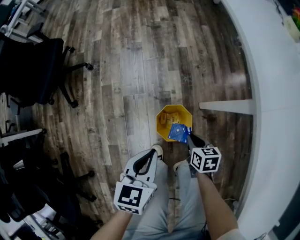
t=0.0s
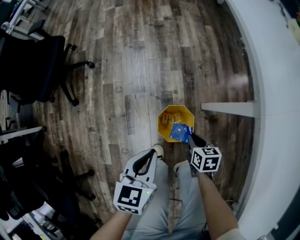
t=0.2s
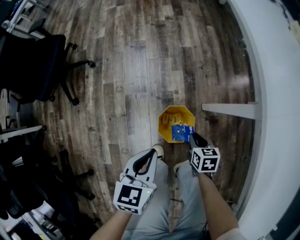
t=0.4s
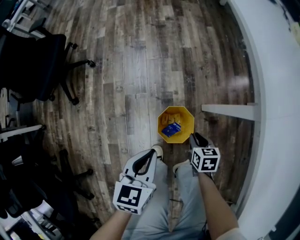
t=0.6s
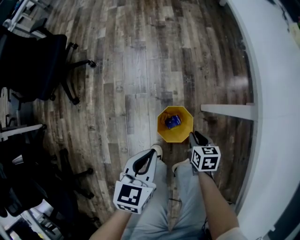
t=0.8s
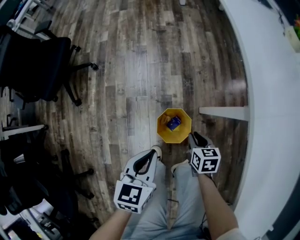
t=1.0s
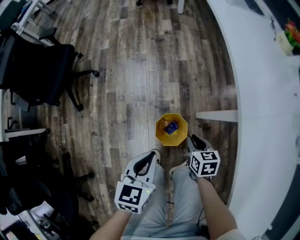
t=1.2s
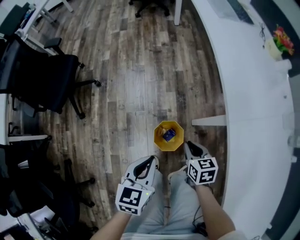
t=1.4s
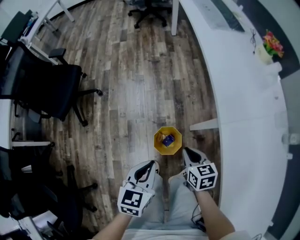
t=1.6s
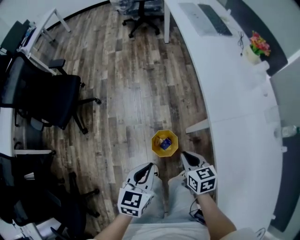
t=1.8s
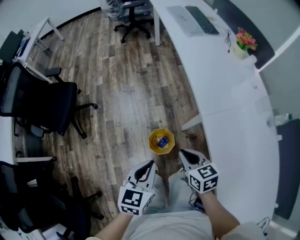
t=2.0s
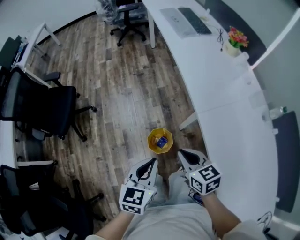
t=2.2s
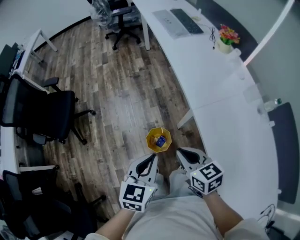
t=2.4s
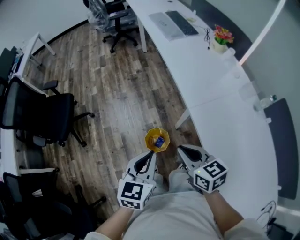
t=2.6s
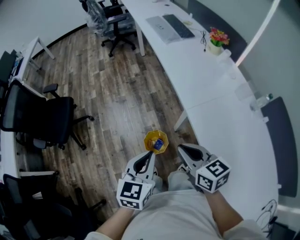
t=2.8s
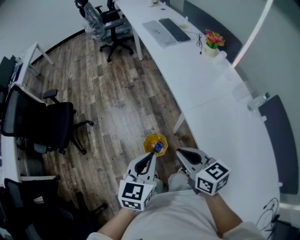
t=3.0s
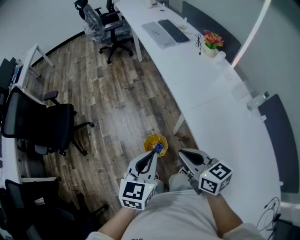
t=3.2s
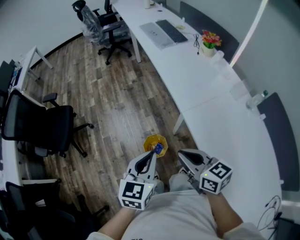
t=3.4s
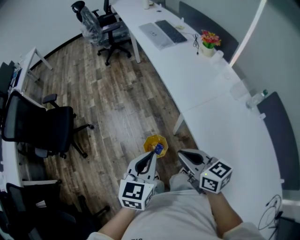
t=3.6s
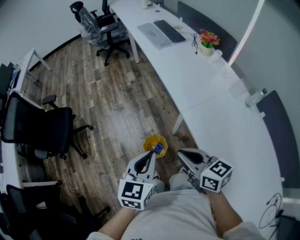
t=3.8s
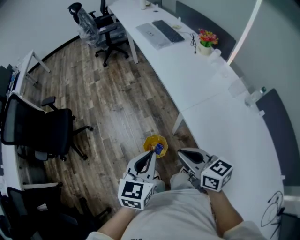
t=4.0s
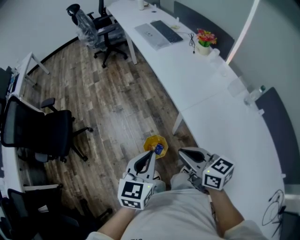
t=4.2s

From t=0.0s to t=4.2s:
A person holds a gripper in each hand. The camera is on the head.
From t=0.0s to t=1.4s: Both grippers move upward, roughly 15 cm.
From t=1.4s to t=2.8s: The right gripper moves upward, approximately 35 cm, and turns by some 20 degrees. Meanwhile the left gripper goes approximately 20 cm upward.
From t=2.8s to t=4.2s: There are only small adjustments of the grippers.

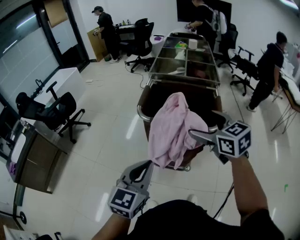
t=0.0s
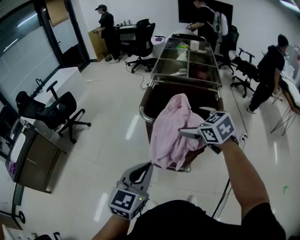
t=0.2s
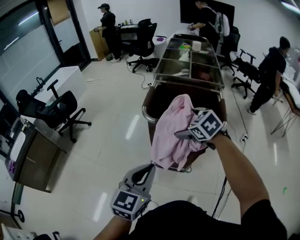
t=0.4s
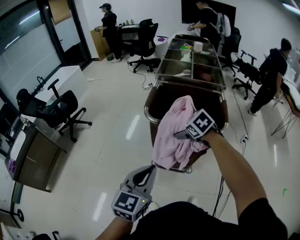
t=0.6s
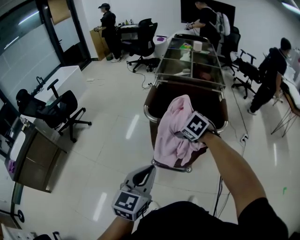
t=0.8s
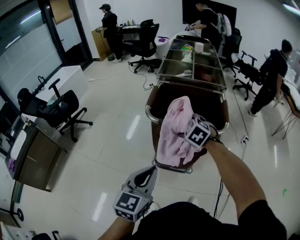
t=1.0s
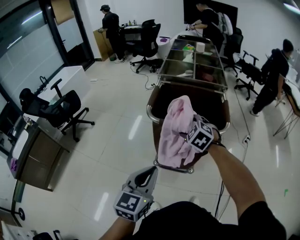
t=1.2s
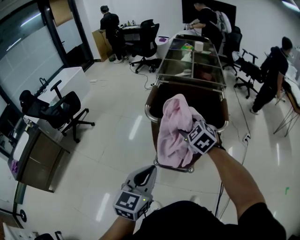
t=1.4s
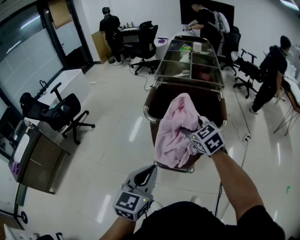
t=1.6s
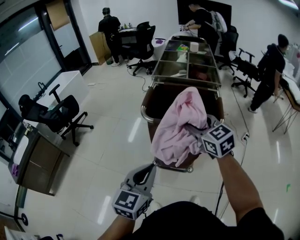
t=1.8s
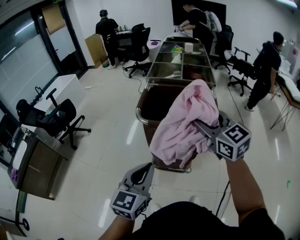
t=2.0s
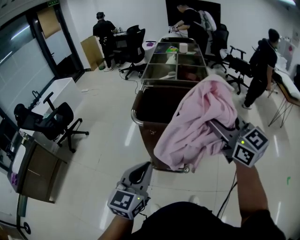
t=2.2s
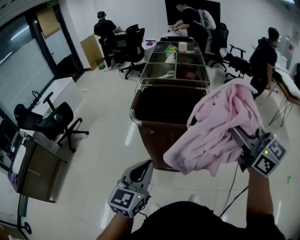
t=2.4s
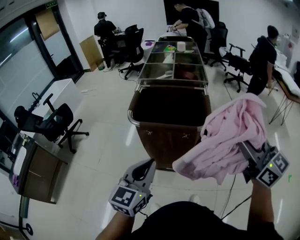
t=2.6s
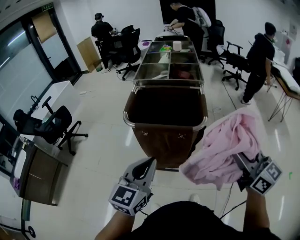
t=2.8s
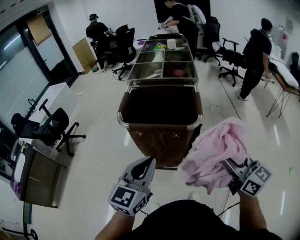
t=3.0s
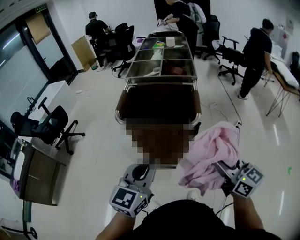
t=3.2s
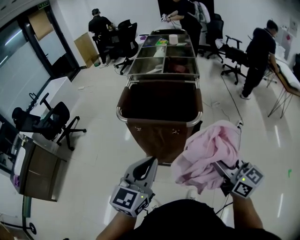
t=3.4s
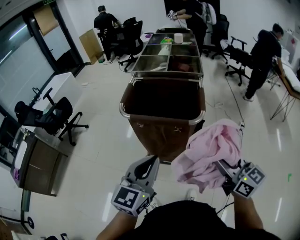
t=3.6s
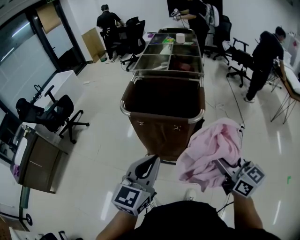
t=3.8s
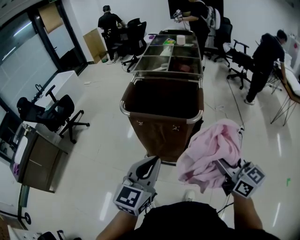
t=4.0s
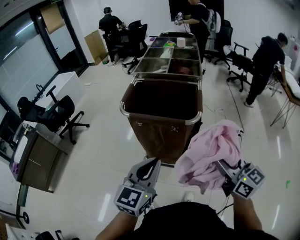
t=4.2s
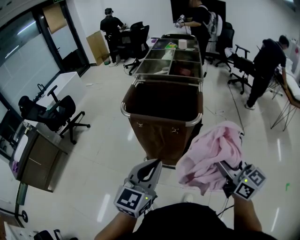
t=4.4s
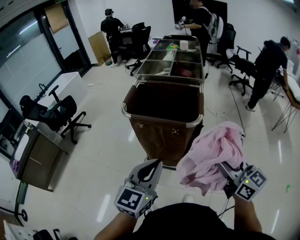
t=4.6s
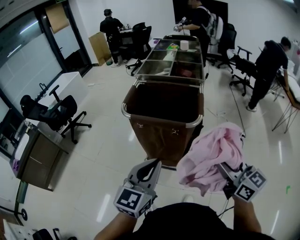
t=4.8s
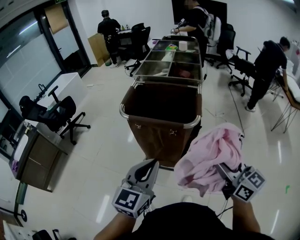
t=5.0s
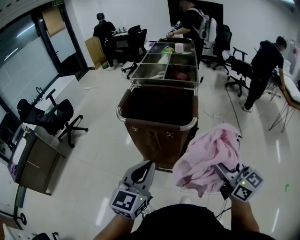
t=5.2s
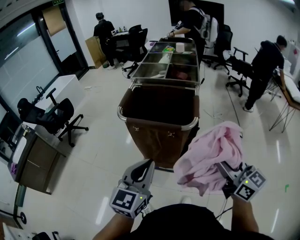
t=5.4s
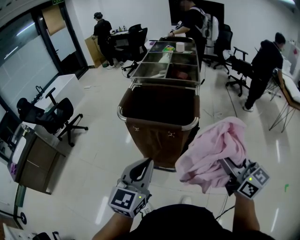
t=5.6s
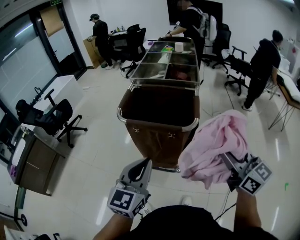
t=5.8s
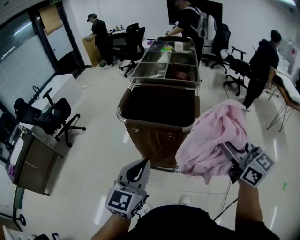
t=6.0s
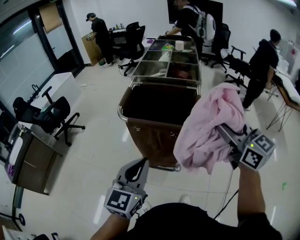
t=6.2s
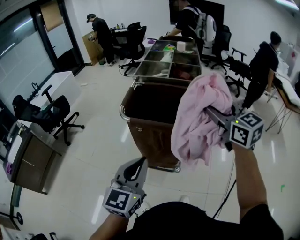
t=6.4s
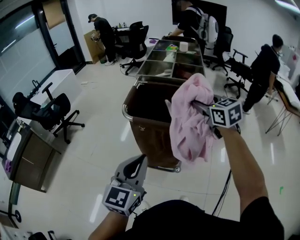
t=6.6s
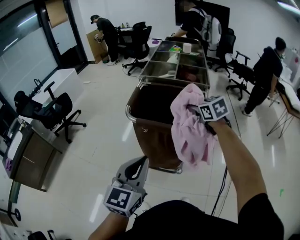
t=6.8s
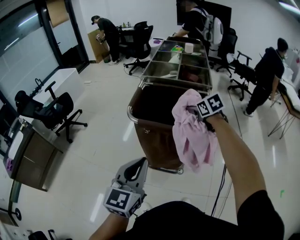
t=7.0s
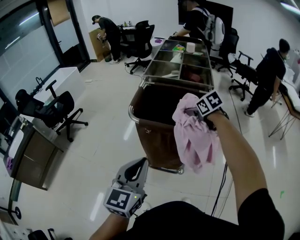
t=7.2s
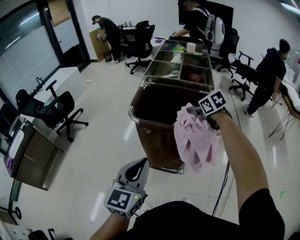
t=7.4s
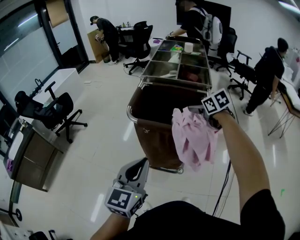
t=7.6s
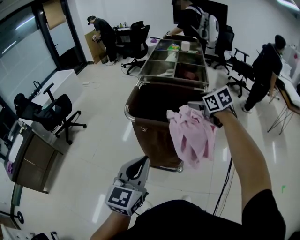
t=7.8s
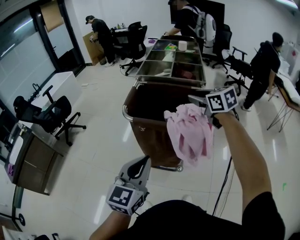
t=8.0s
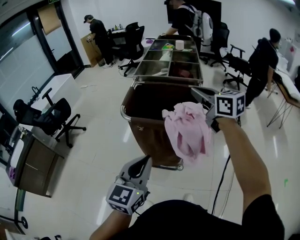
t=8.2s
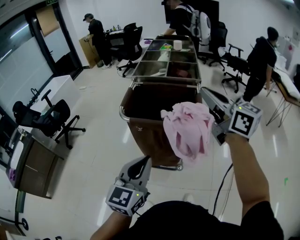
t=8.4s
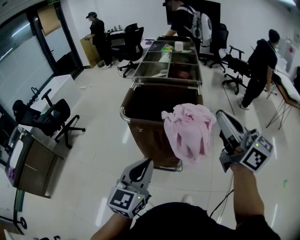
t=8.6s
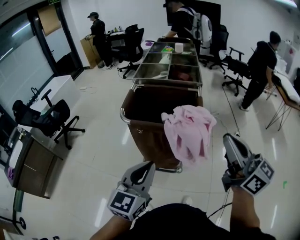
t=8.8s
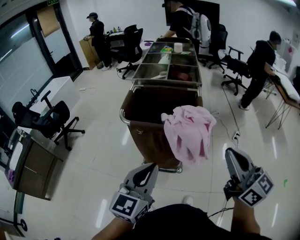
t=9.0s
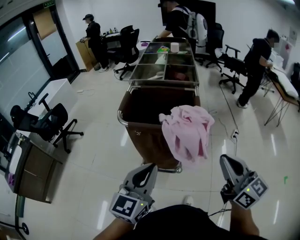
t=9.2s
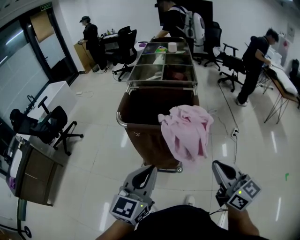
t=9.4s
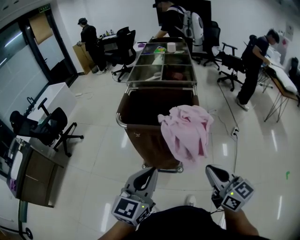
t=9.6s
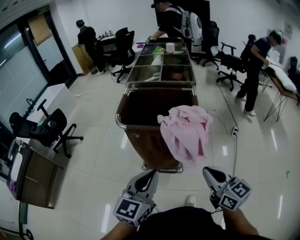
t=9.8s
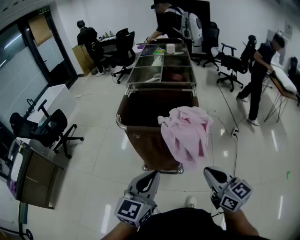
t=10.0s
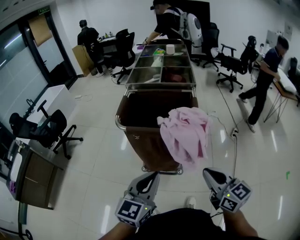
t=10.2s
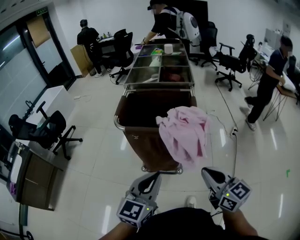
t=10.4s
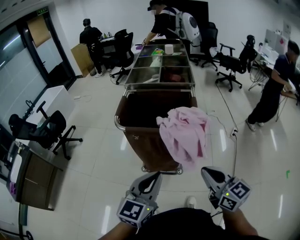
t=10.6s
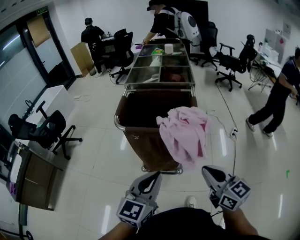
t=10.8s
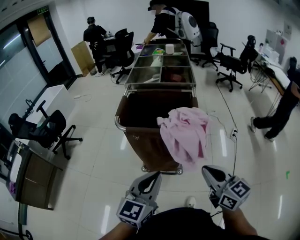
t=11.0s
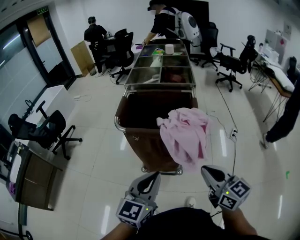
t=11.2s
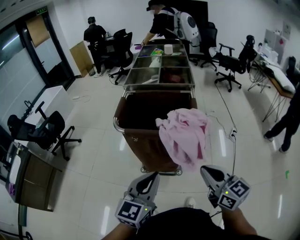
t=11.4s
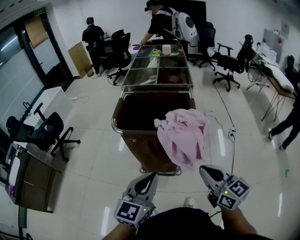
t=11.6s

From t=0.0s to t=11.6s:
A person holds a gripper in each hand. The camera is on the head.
From t=0.0s to t=1.4s: The right gripper is displaced downward, to the left and forward by some 15 cm, swivels some 30 degrees, and closes.
From t=1.4s to t=2.8s: The right gripper goes about 35 cm to the right, backward and upward, and tips its fingers upward by some 40 degrees. The left gripper travels to the right by roughly 10 cm.
From t=2.8s to t=4.4s: The left gripper heads to the right, covering some 5 cm; the right gripper is displaced downward by roughly 5 cm.
From t=4.4s to t=5.8s: The right gripper is displaced upward by some 5 cm.
From t=5.8s to t=7.2s: The right gripper is displaced forward and downward by approximately 35 cm, and tilts its fingers approximately 50 degrees downward, while the left gripper shifts roughly 10 cm to the left.
From t=7.2s to t=8.8s: The right gripper is displaced backward and upward by roughly 35 cm, points its fingers some 60 degrees further upward, and closes its fingers. The left gripper heads to the right, covering approximately 5 cm.
From t=8.8s to t=10.2s: The right gripper goes approximately 15 cm downward, and swivels approximately 20 degrees.
From t=10.2s to t=11.6s: There are only small adjustments of the grippers.

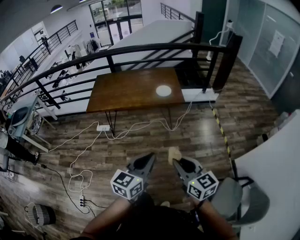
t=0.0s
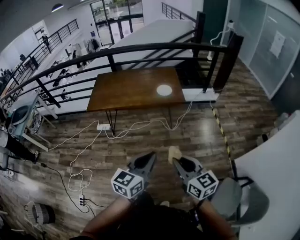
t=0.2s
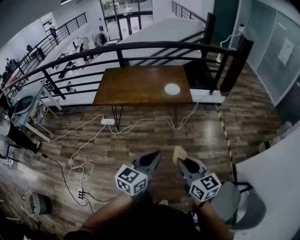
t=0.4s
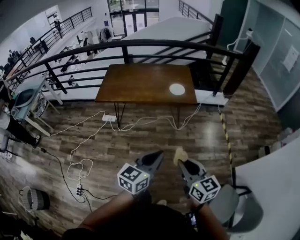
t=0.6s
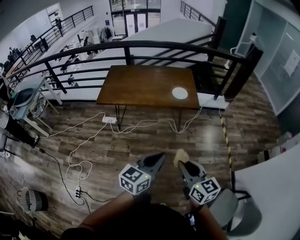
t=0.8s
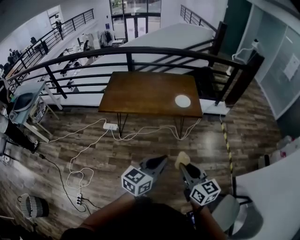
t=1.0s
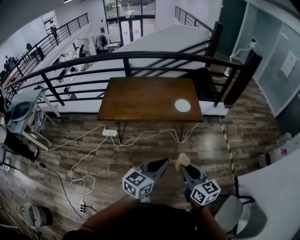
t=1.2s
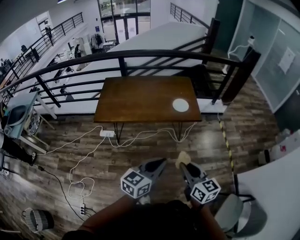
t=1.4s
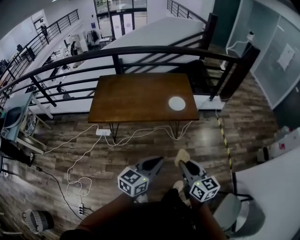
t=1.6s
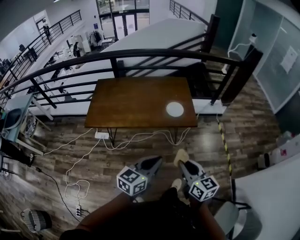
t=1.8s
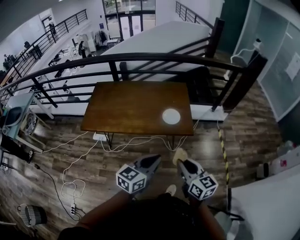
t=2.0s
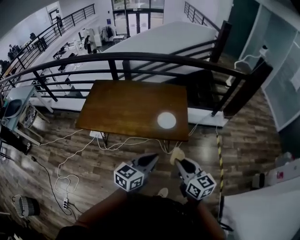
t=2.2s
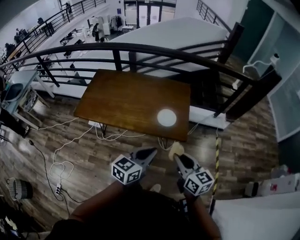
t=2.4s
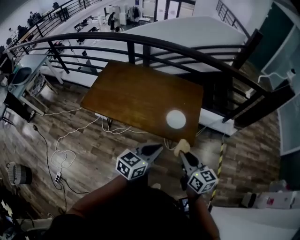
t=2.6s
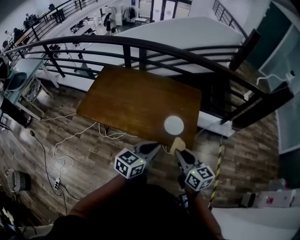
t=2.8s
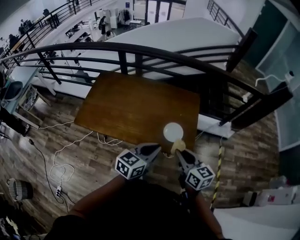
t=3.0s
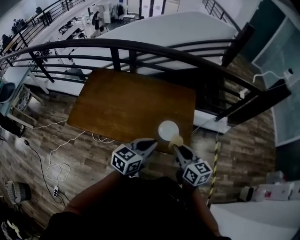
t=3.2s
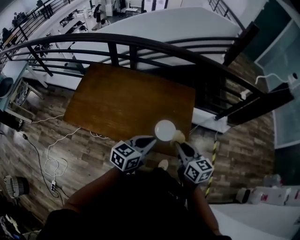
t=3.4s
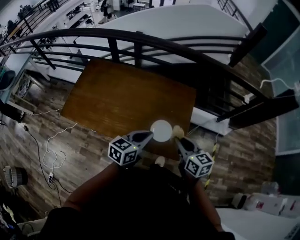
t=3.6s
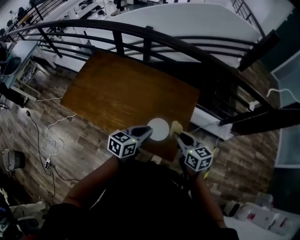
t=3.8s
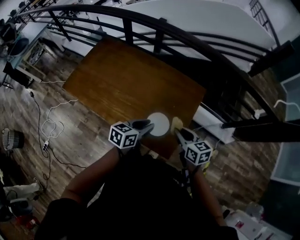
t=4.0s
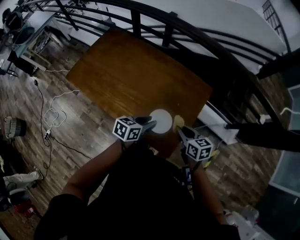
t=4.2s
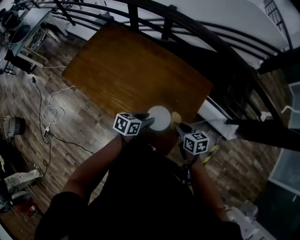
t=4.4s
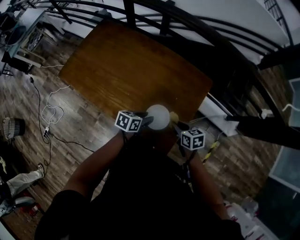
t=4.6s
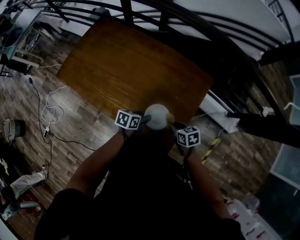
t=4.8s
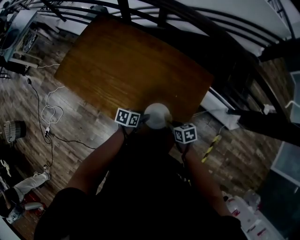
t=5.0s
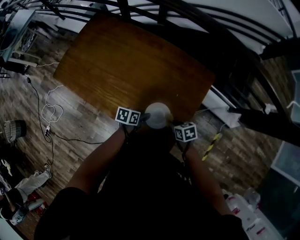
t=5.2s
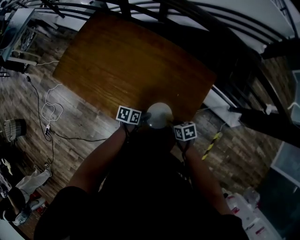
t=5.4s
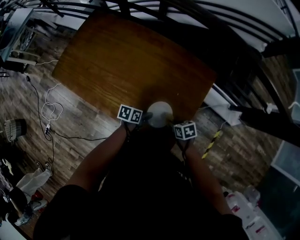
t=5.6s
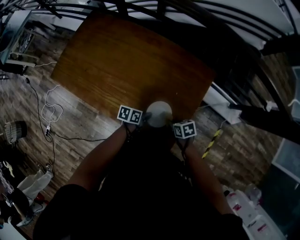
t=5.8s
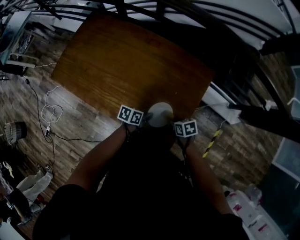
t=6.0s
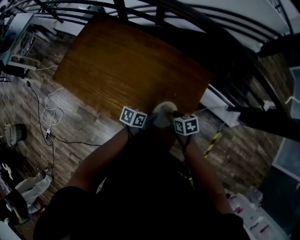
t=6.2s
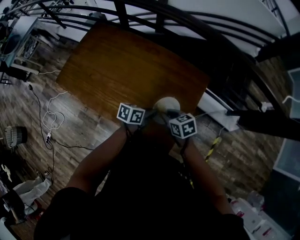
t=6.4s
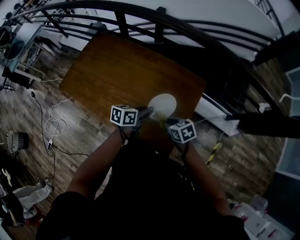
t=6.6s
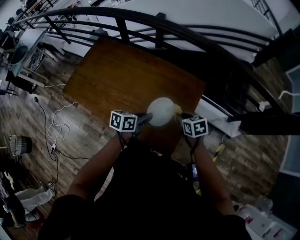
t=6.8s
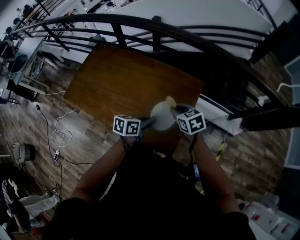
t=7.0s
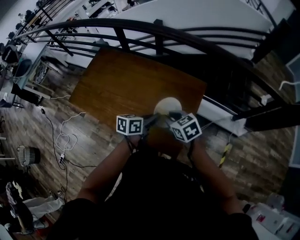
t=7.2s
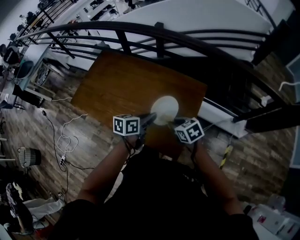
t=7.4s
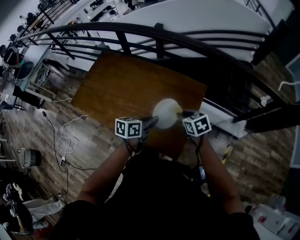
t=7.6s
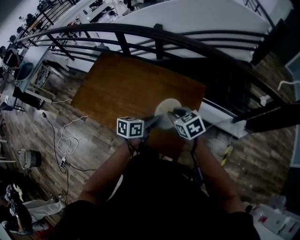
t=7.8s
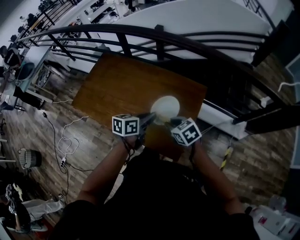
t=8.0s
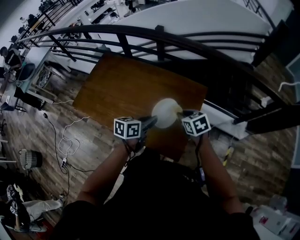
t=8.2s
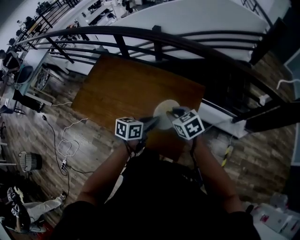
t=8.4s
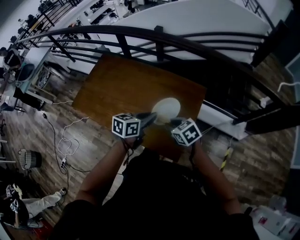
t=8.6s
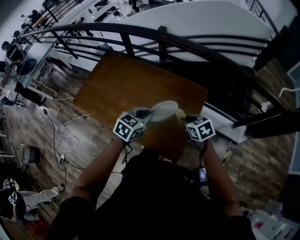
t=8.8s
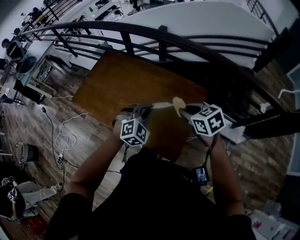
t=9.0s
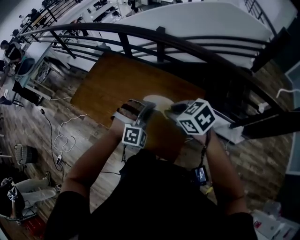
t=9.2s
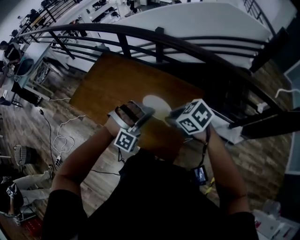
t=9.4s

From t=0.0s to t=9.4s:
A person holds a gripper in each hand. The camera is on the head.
From t=0.0s to t=1.6s: Both grippers move forward and to the left, some 20 cm.
From t=1.6s to t=3.2s: The two grippers travel together, forward, about 40 cm.
From t=3.2s to t=4.8s: The left gripper travels downward and forward by some 35 cm, turns by about 40 degrees, and opens. The right gripper heads downward, forward and to the right, covering about 35 cm, and points its fingers approximately 30 degrees further downward.
From t=4.8s to t=6.2s: The right gripper shifts by about 5 cm, while the left gripper moves some 5 cm, and closes.
From t=6.2s to t=7.8s: The grippers both shift upward by some 20 cm. The right gripper swivels approximately 20 degrees.
From t=7.8s to t=9.4s: Both grippers travel together upward, roughly 5 cm. The right gripper rotates about 20 degrees. Meanwhile the left gripper rotates around the line of its fingers by some 130 degrees, clockwise from behind.
